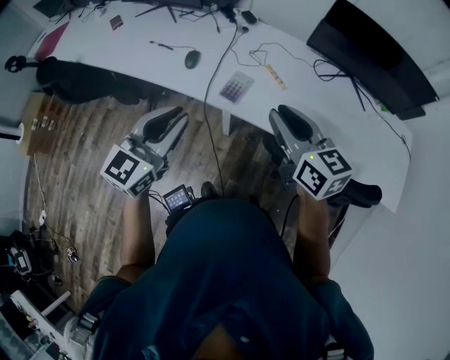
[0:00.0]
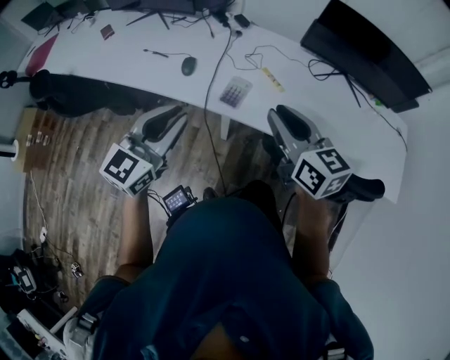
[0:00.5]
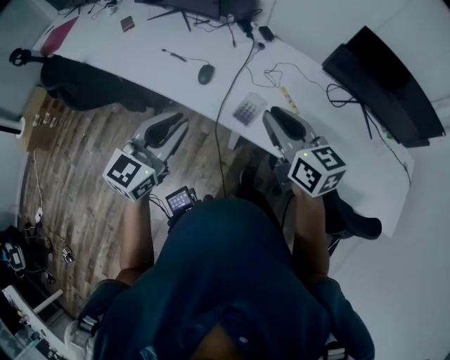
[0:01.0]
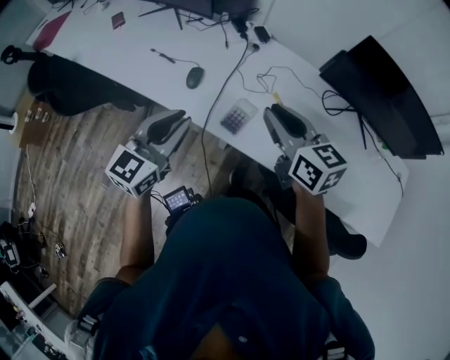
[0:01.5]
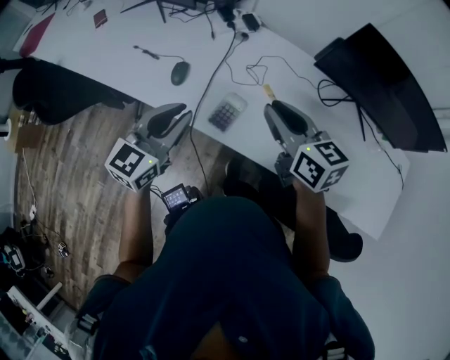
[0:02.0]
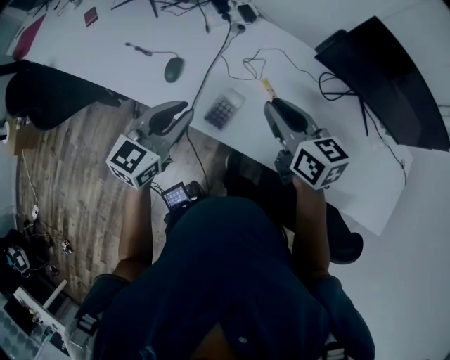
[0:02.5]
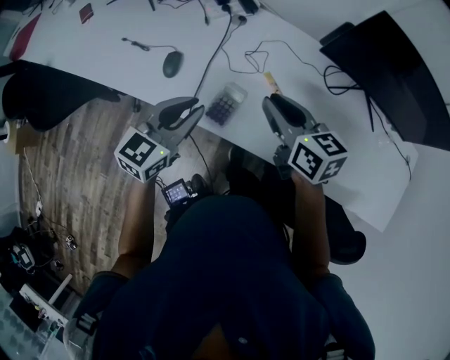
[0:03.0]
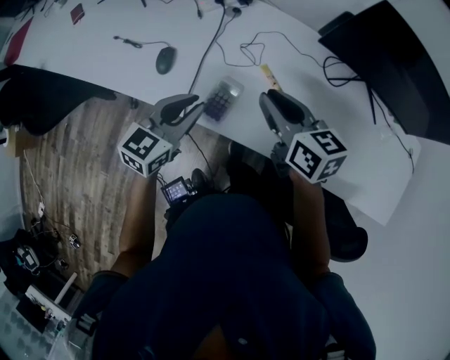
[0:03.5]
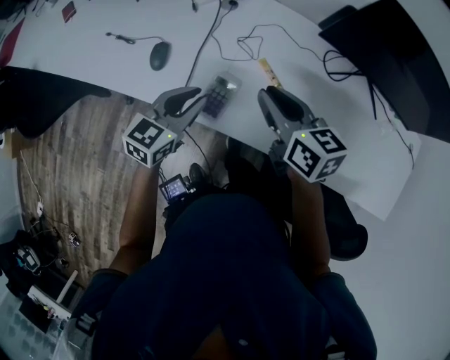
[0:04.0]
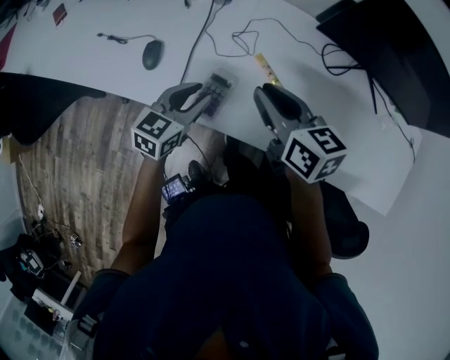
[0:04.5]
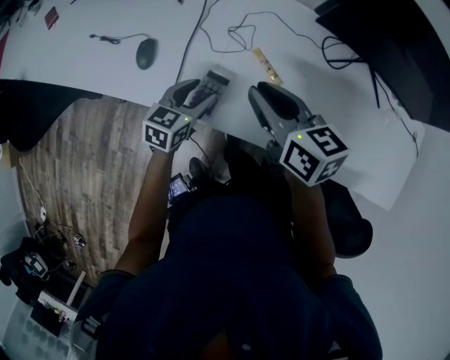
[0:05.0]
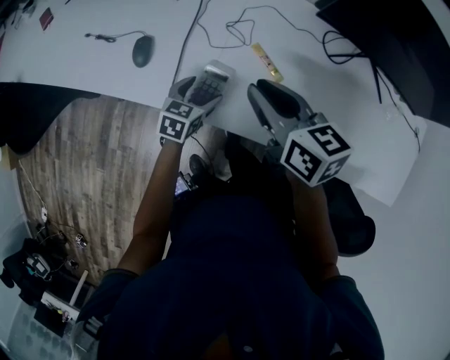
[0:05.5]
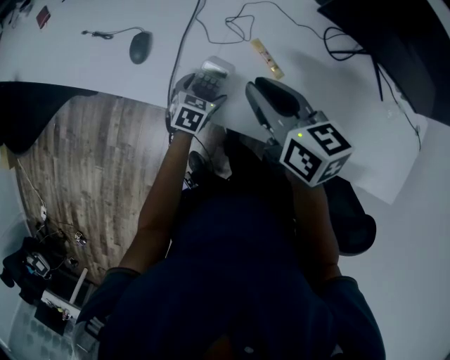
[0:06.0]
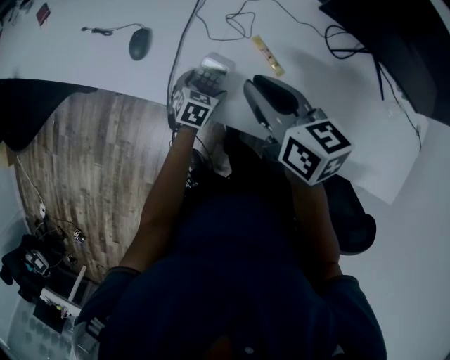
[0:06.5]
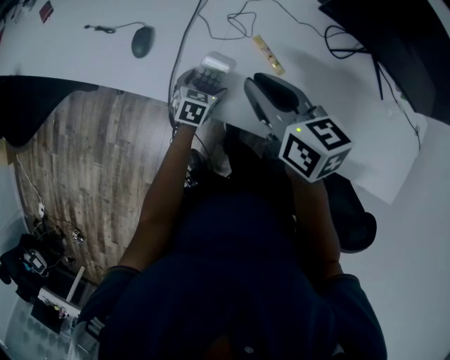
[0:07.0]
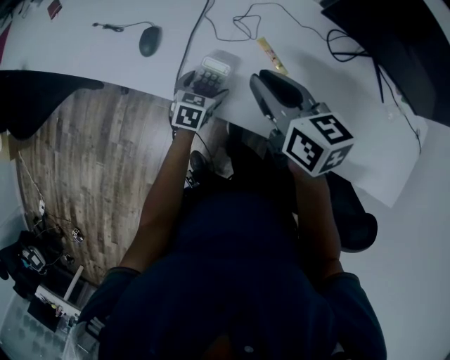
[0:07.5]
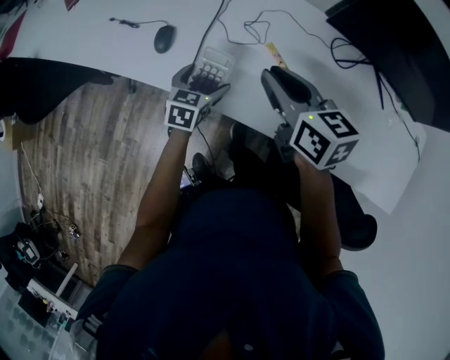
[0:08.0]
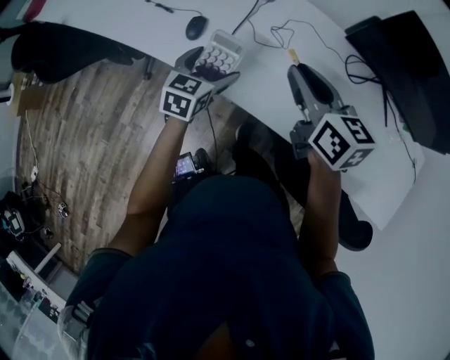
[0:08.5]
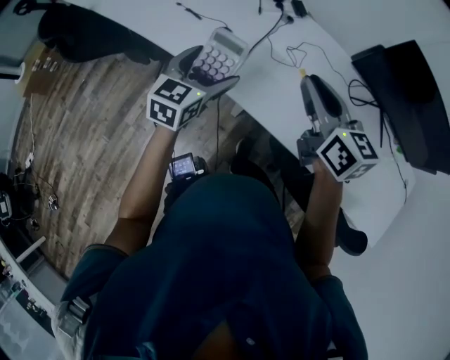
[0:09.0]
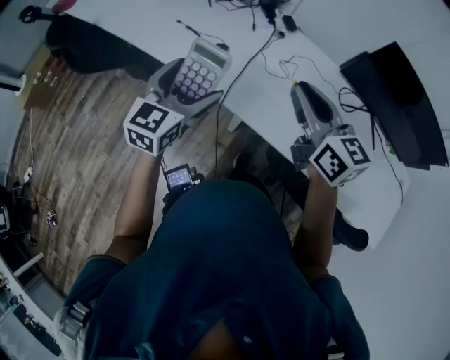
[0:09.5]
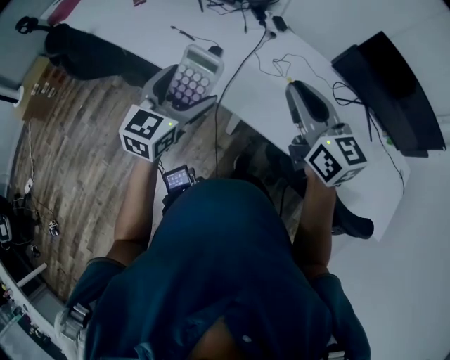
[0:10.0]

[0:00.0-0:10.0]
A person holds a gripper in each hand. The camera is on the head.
0:00.0 to 0:02.0: The grippers both shift forward by about 20 cm.
0:02.0 to 0:04.0: The right gripper goes roughly 10 cm downward. Meanwhile the left gripper goes roughly 15 cm downward, forward and to the right.
0:04.0 to 0:06.0: The left gripper goes approximately 20 cm downward, rotates some 30 degrees, and opens its fingers.
0:06.0 to 0:08.0: The left gripper shifts some 10 cm upward.
0:08.0 to 0:10.0: The right gripper shifts about 20 cm upward, backward and to the left, and swivels roughly 20 degrees. Meanwhile the left gripper shifts approximately 35 cm upward, to the left and backward, and changes its angle by approximately 30 degrees.

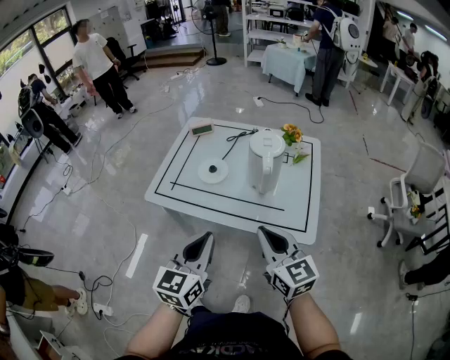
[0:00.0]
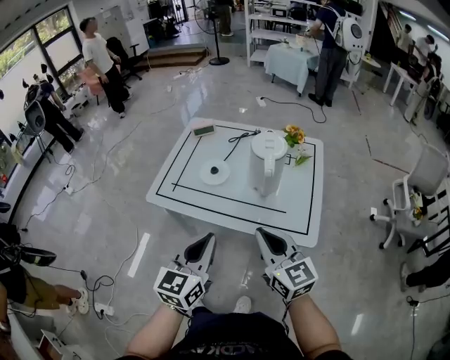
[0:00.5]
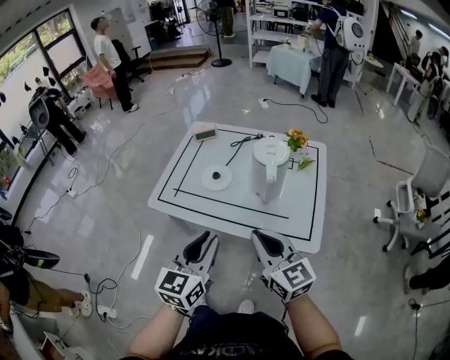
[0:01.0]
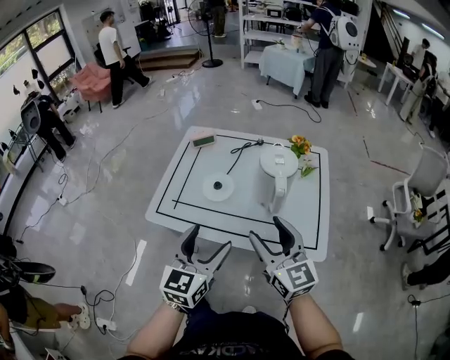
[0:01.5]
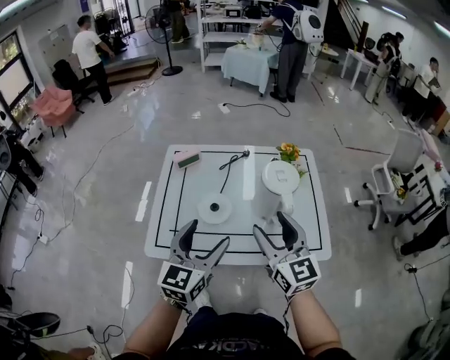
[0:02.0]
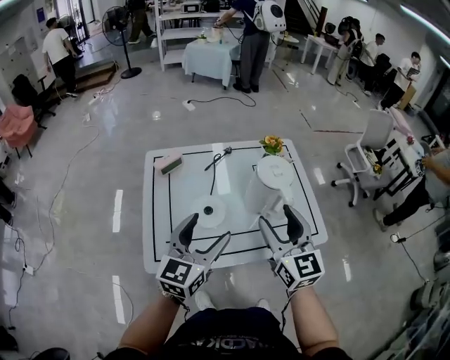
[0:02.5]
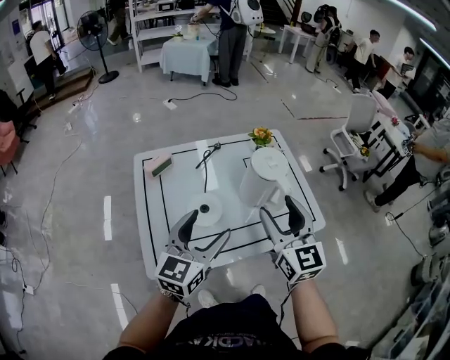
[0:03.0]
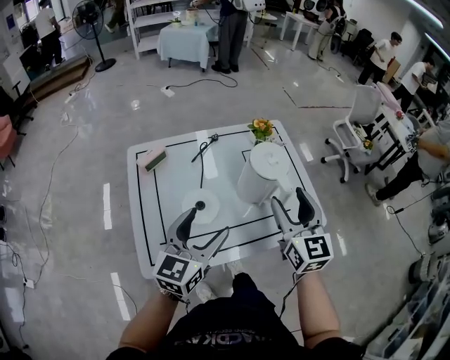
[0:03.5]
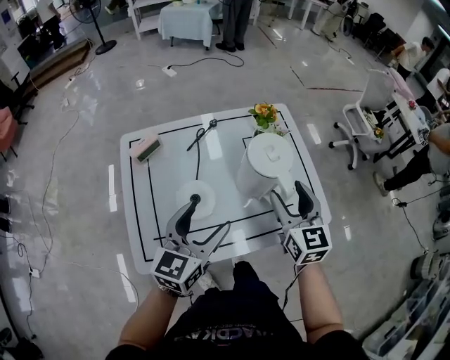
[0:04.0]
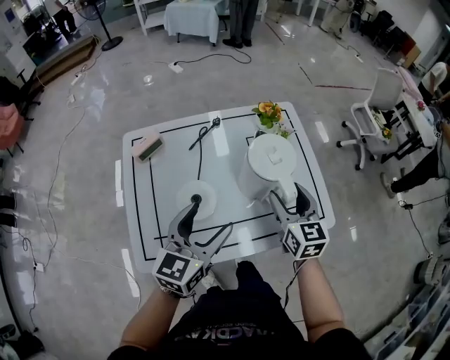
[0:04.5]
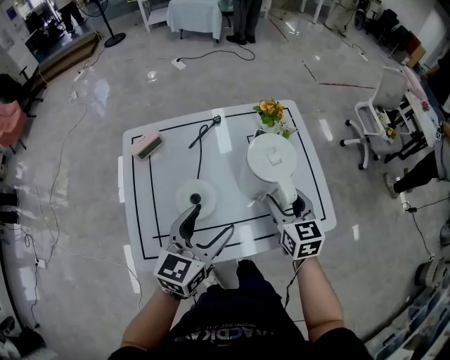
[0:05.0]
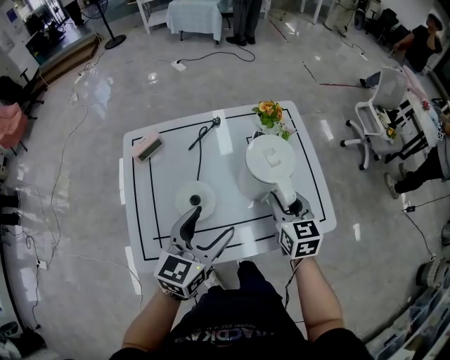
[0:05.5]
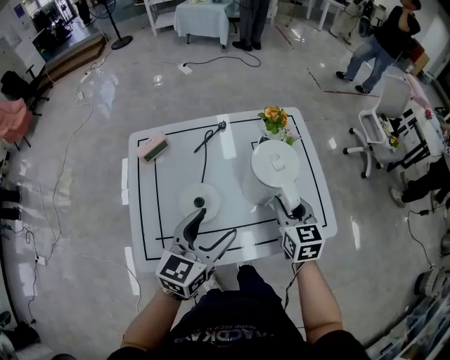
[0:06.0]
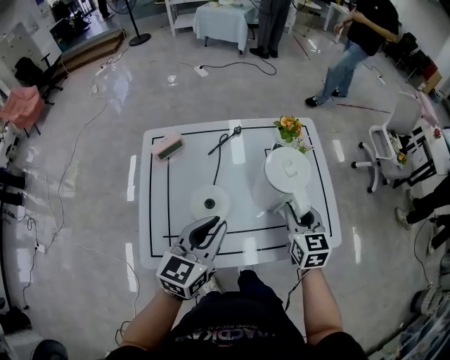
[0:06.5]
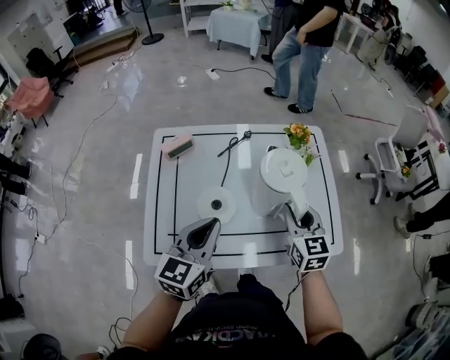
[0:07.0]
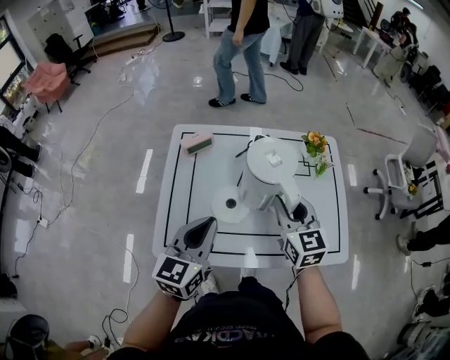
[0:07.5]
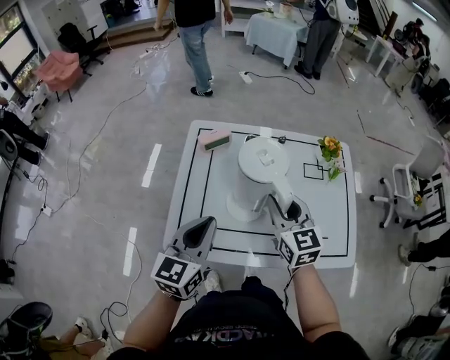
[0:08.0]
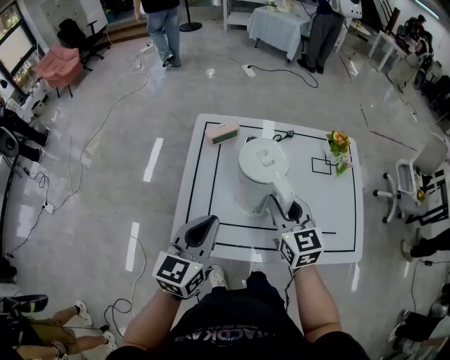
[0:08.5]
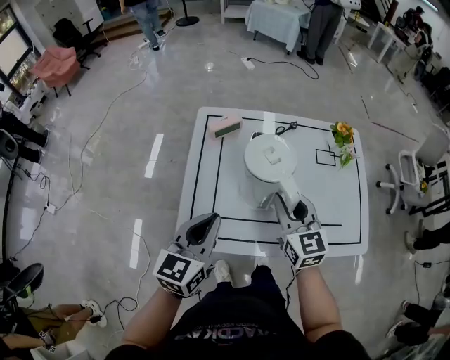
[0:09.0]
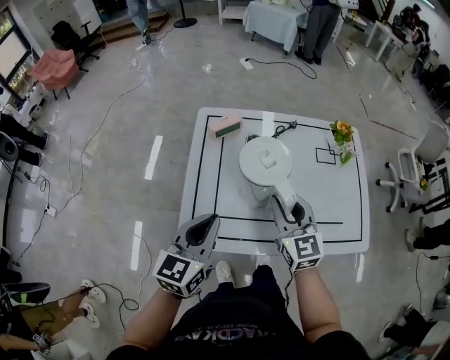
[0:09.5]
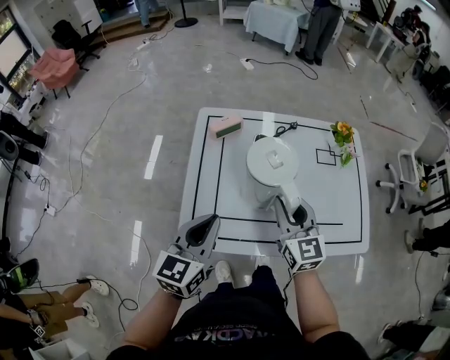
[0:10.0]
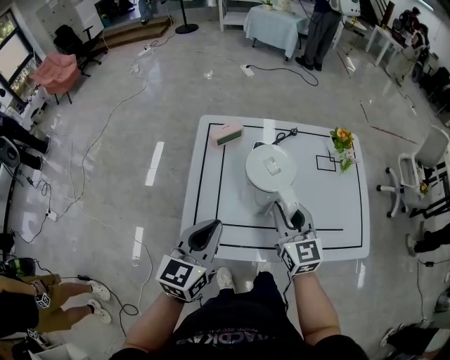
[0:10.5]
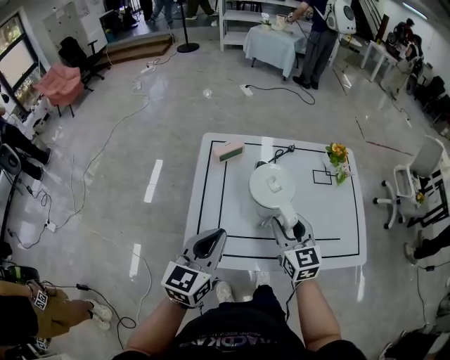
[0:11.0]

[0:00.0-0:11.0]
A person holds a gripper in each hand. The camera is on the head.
0:00.0 to 0:02.0: The two grippers go about 20 cm forward. The left gripper opens its fingers. The right gripper changes its angle by approximately 20 degrees, and opens.
0:02.0 to 0:03.5: Both grippers travel together forward, some 5 cm. The left gripper changes its angle by approximately 20 degrees, while the right gripper swivels approximately 30 degrees.
0:03.5 to 0:05.5: The left gripper ends up approximately 10 cm from where it was. Meanwhile the right gripper heads downward and forward, covering approximately 15 cm, turns by about 20 degrees, and closes up.
0:05.5 to 0:07.5: The right gripper moves to the left and upward, roughly 15 cm, and swivels about 20 degrees, while the left gripper shifts about 10 cm to the left, and closes its fingers.
0:07.5 to 0:09.0: The two grippers go some 10 cm to the left.
0:09.0 to 0:11.0: The grippers make only small movements.

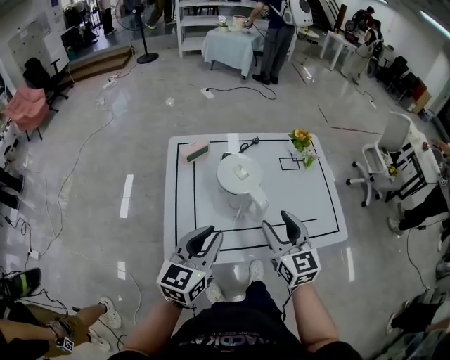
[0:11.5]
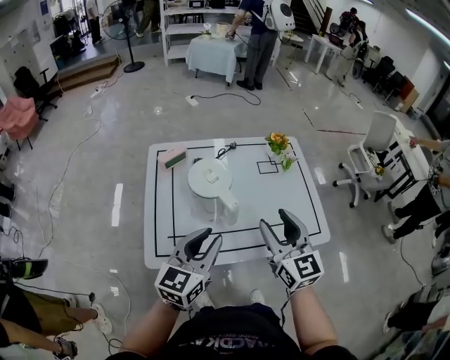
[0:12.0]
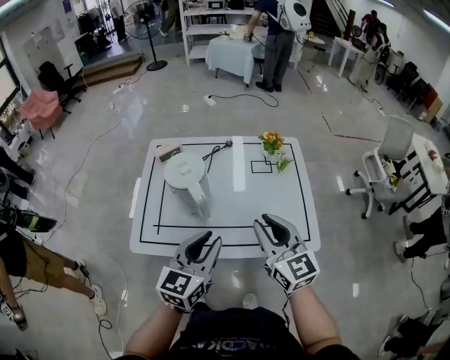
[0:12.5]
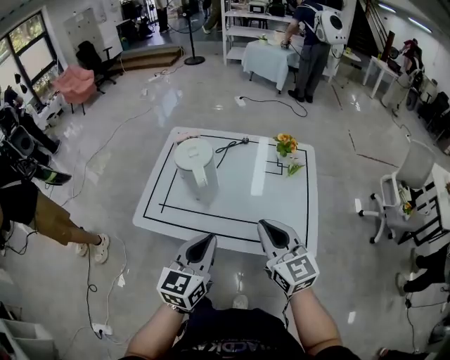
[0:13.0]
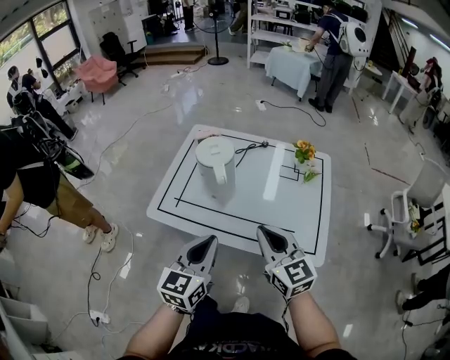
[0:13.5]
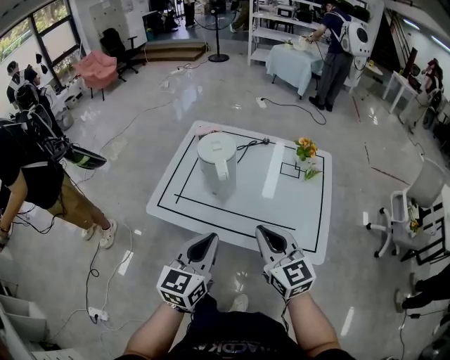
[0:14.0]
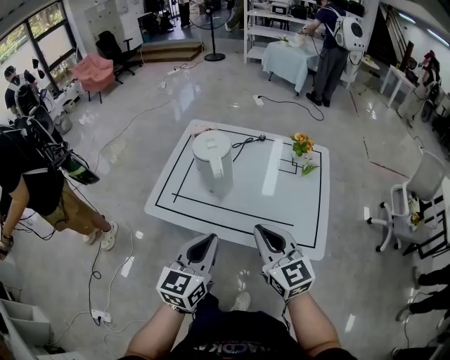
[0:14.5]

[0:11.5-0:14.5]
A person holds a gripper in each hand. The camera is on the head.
0:11.5 to 0:13.0: The two grippers go about 20 cm to the right. The right gripper rotates some 20 degrees, and closes.
0:13.0 to 0:14.5: The right gripper changes place by roughly 5 cm.

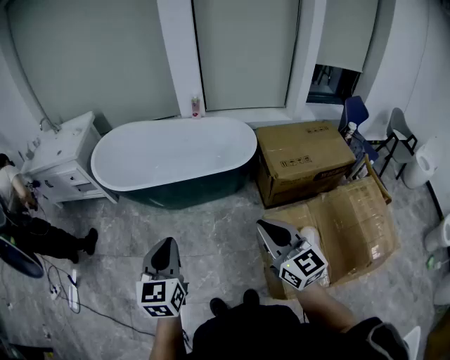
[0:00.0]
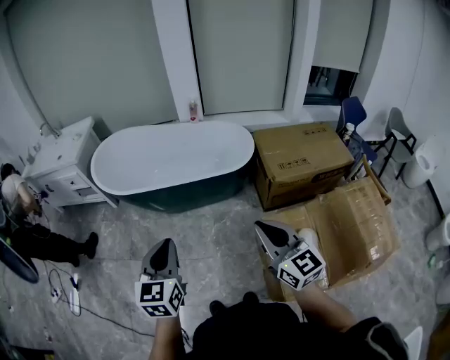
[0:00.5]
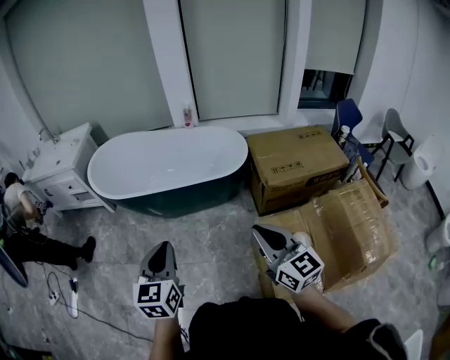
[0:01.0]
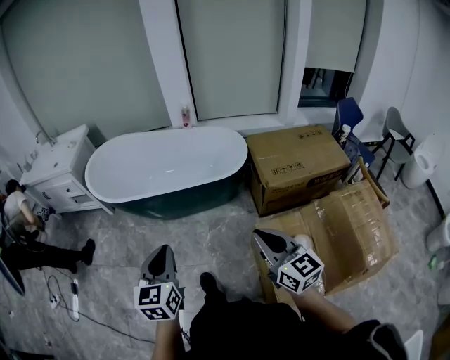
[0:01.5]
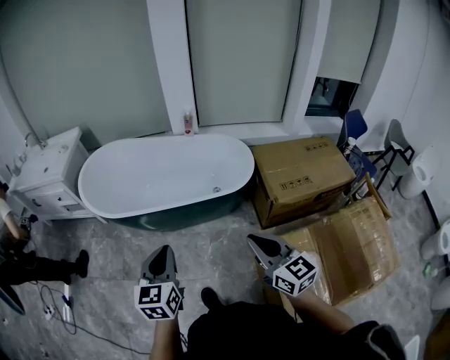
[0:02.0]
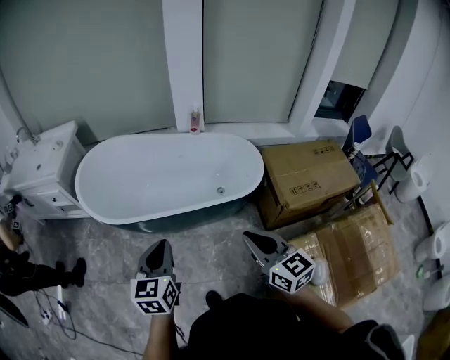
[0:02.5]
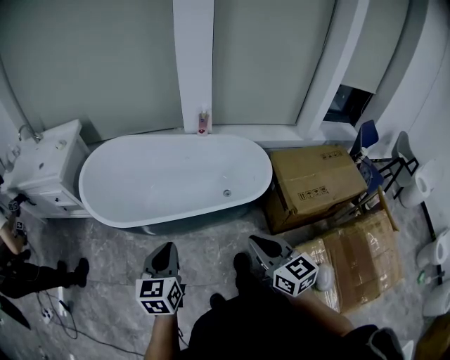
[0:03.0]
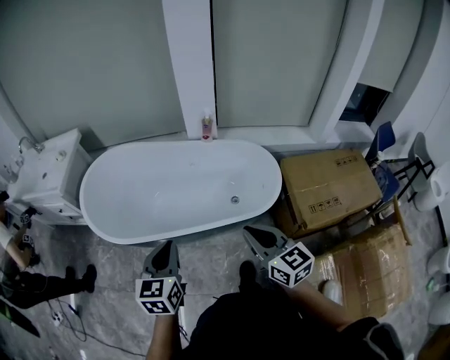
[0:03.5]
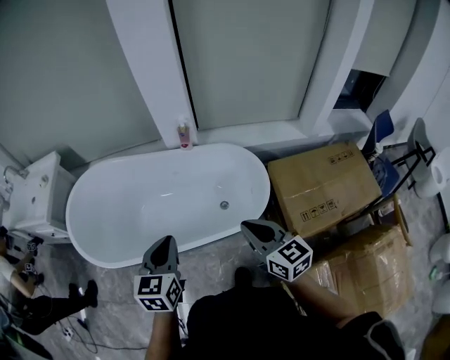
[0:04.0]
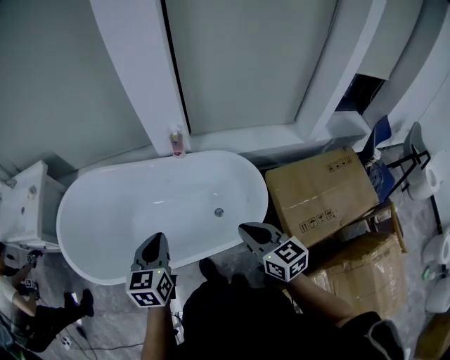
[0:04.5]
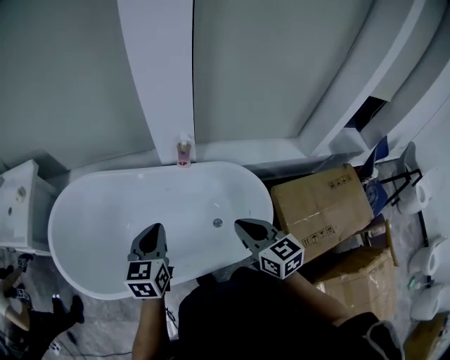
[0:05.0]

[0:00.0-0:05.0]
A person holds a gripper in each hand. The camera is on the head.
0:00.0 to 0:02.5: Both grippers travel together forward, roughly 25 cm.
0:02.5 to 0:05.0: The pair of grippers is taken forward, about 50 cm.
